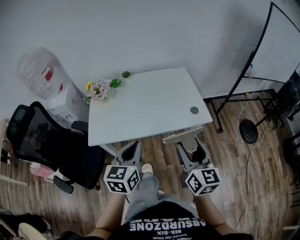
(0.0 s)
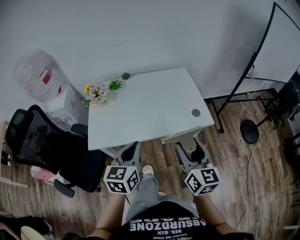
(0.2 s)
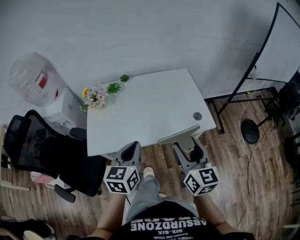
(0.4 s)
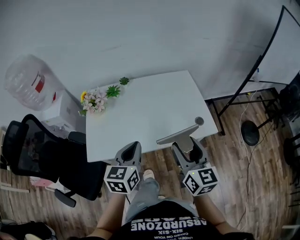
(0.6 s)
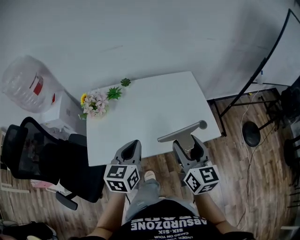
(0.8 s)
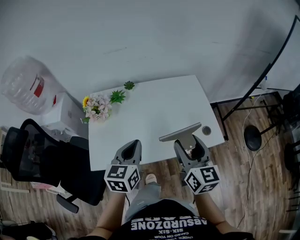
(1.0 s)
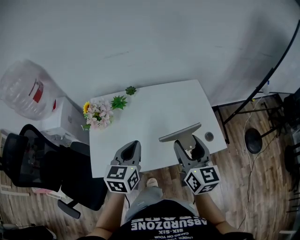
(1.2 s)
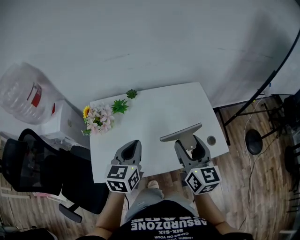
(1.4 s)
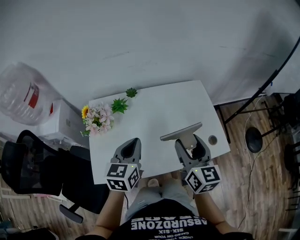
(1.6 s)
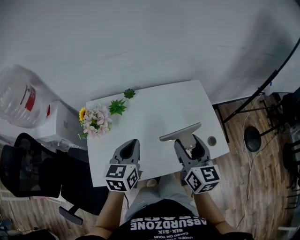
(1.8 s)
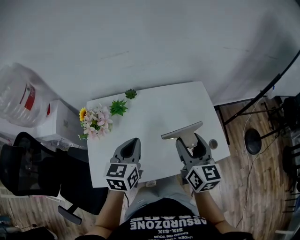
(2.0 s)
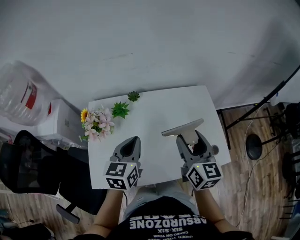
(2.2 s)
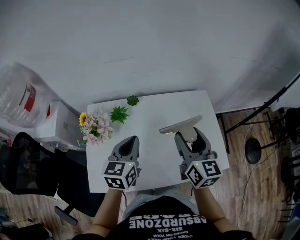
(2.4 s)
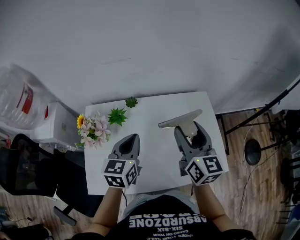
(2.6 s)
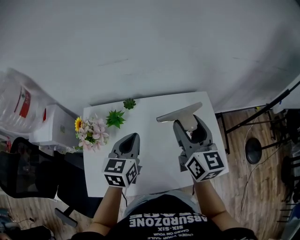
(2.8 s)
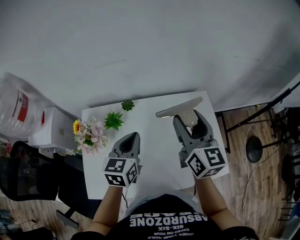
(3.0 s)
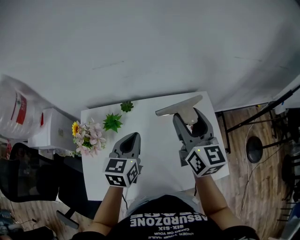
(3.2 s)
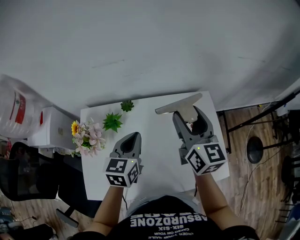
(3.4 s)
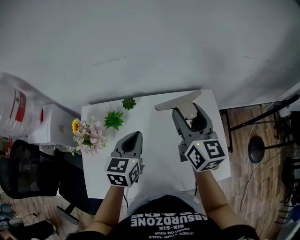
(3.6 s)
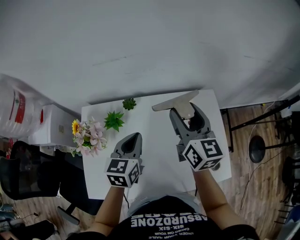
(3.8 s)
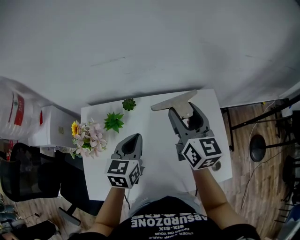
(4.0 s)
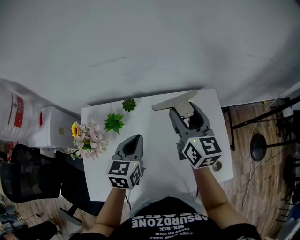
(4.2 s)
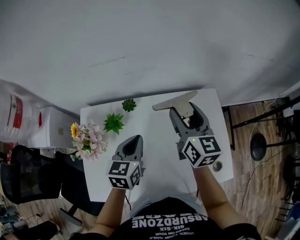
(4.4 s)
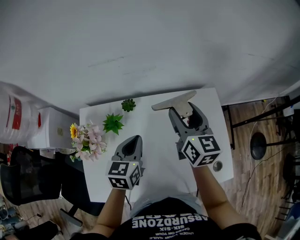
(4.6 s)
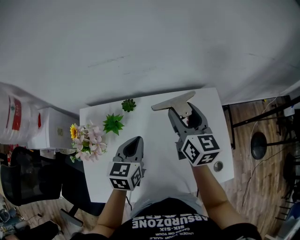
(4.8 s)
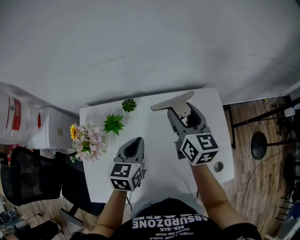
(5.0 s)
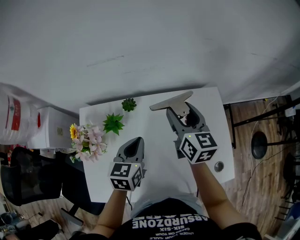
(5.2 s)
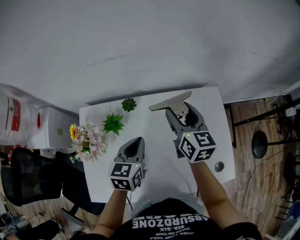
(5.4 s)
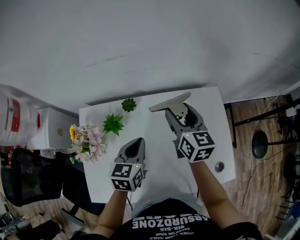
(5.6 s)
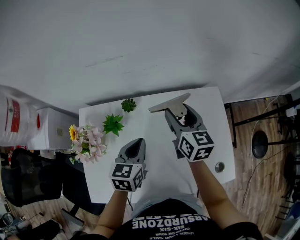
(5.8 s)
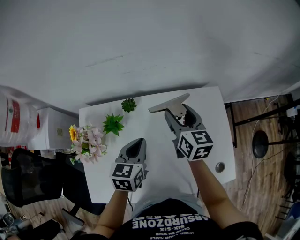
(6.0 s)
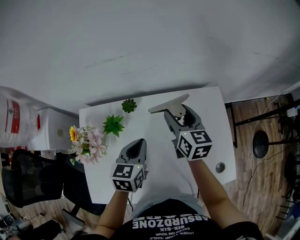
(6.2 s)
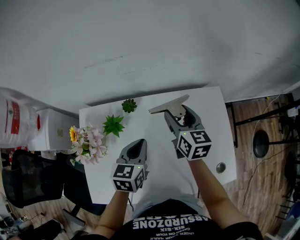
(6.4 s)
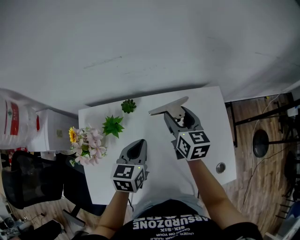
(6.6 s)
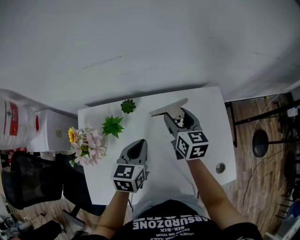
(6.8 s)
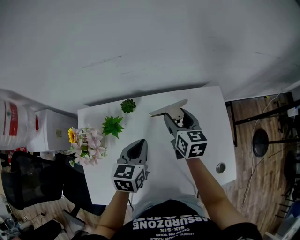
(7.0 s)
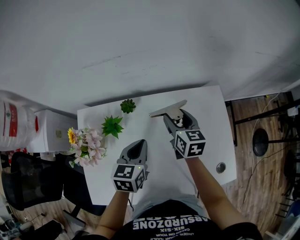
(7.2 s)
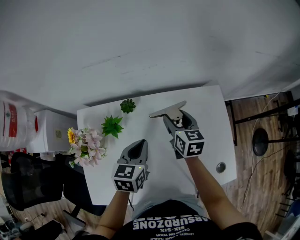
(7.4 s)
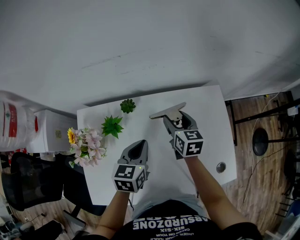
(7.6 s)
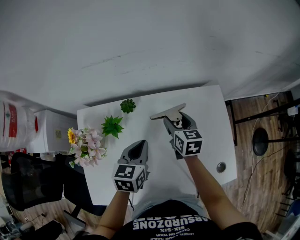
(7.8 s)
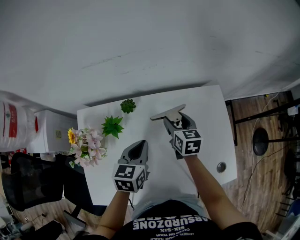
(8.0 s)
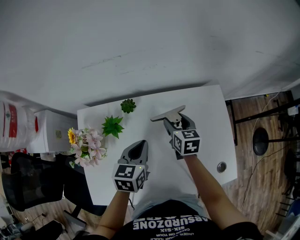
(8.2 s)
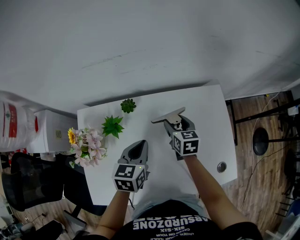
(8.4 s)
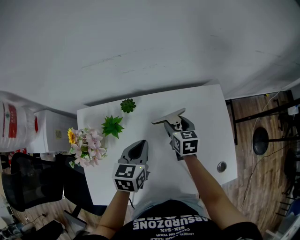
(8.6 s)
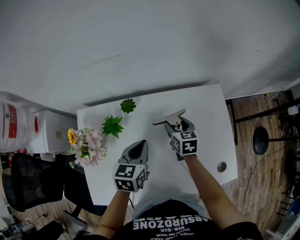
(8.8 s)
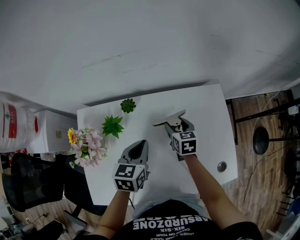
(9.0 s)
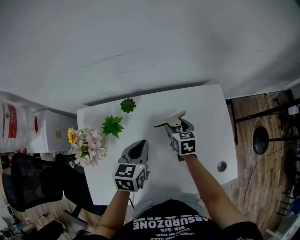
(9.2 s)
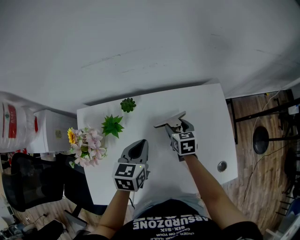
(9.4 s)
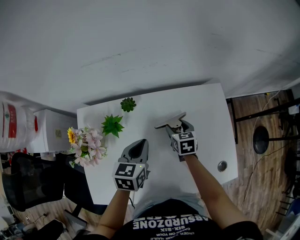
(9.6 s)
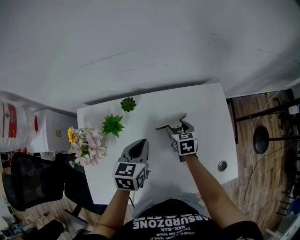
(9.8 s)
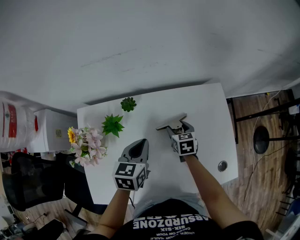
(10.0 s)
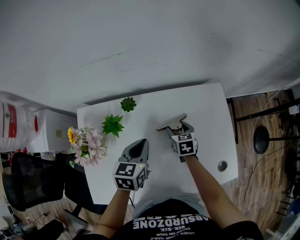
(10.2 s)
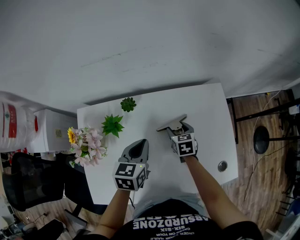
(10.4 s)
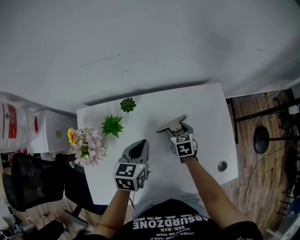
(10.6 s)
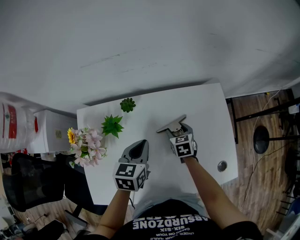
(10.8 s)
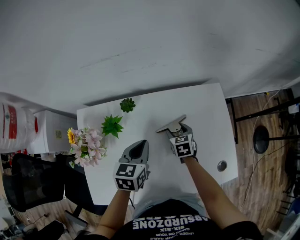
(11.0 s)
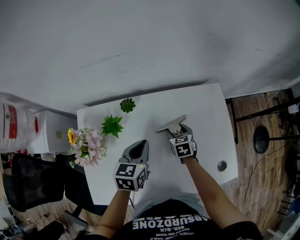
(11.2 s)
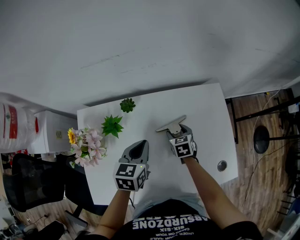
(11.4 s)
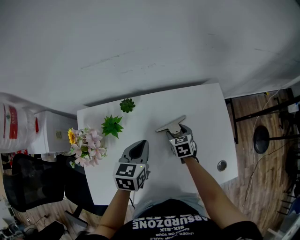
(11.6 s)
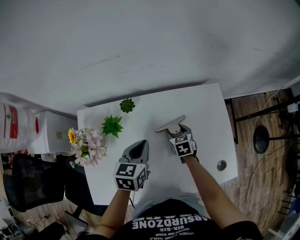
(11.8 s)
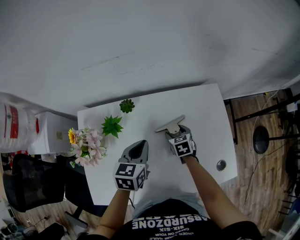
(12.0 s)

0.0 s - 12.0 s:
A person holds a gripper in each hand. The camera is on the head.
0.0 s - 1.6 s: Both grippers move forward, some 30 cm.
1.6 s - 3.0 s: The grippers both shift forward by about 20 cm.
3.0 s - 4.4 s: The left gripper moves approximately 5 cm; the right gripper moves forward and downward, approximately 10 cm.
4.4 s - 6.0 s: The right gripper moves downward, approximately 5 cm.
6.0 s - 7.6 s: The right gripper shifts some 10 cm downward.
7.6 s - 9.0 s: The right gripper heads downward, covering roughly 10 cm.
9.0 s - 10.4 s: The right gripper goes roughly 5 cm downward.
10.4 s - 12.0 s: The grippers stay close to where they were, moving slightly.

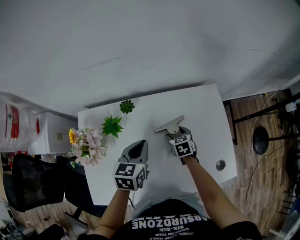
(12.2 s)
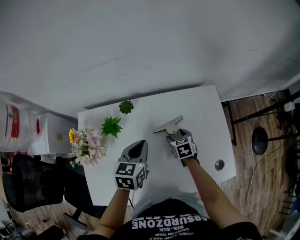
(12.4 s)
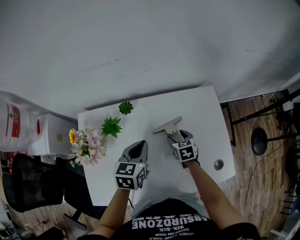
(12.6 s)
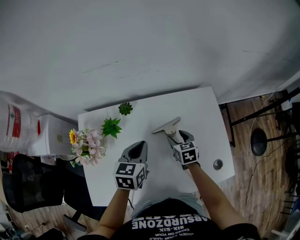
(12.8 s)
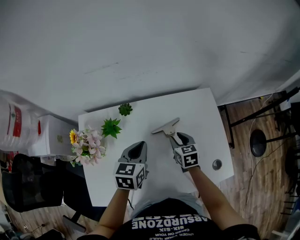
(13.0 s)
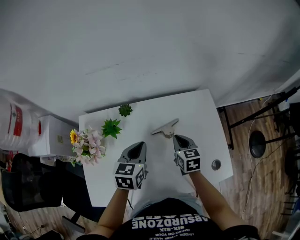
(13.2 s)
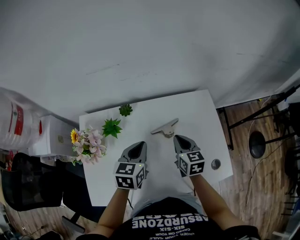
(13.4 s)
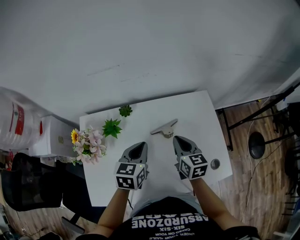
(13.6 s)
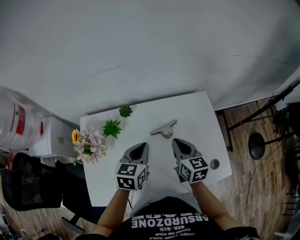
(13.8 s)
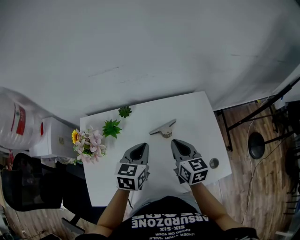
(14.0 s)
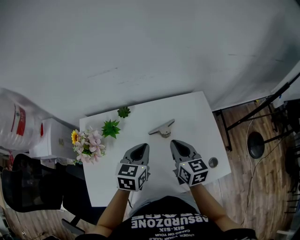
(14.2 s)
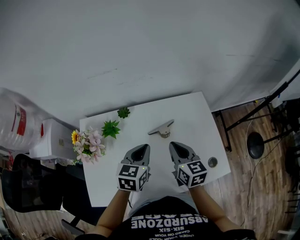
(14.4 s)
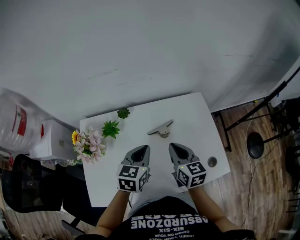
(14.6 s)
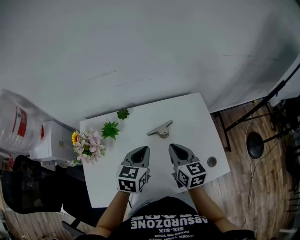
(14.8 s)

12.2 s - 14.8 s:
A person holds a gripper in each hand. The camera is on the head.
12.2 s - 13.4 s: The right gripper goes roughly 15 cm upward, turns by roughly 30 degrees, and closes.
13.4 s - 14.8 s: The right gripper heads backward and upward, covering some 10 cm. Meanwhile the left gripper shifts by some 5 cm.

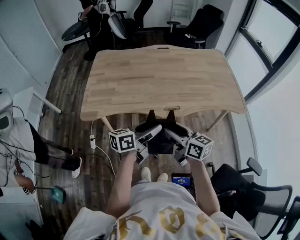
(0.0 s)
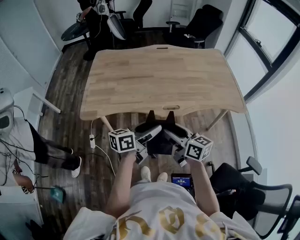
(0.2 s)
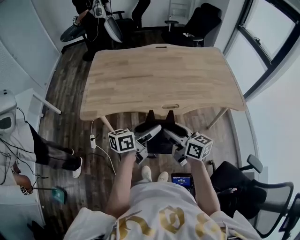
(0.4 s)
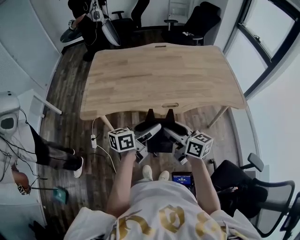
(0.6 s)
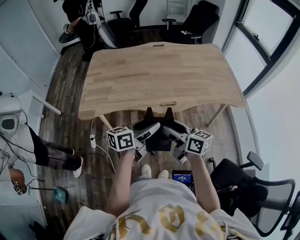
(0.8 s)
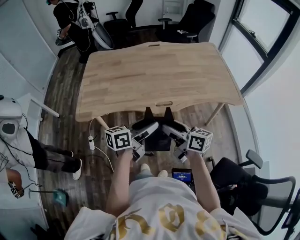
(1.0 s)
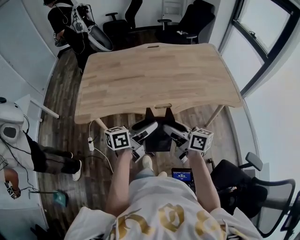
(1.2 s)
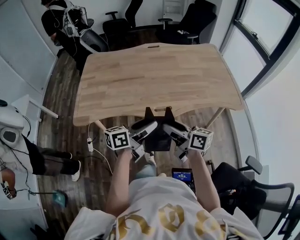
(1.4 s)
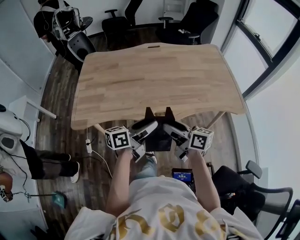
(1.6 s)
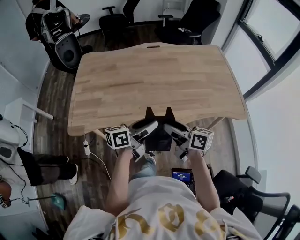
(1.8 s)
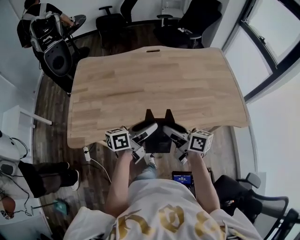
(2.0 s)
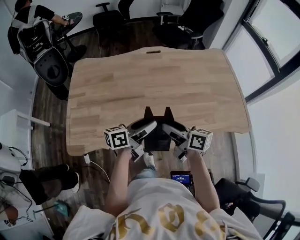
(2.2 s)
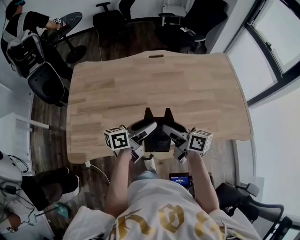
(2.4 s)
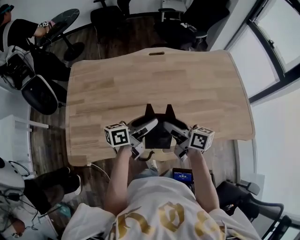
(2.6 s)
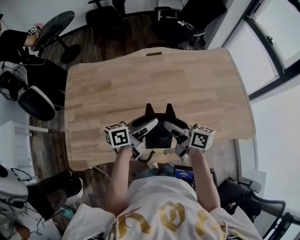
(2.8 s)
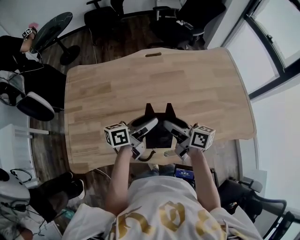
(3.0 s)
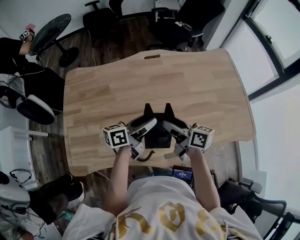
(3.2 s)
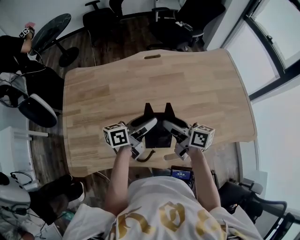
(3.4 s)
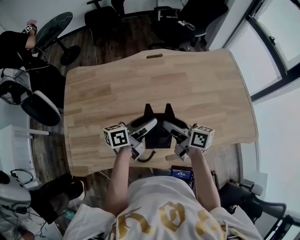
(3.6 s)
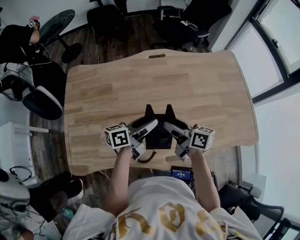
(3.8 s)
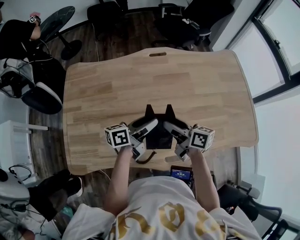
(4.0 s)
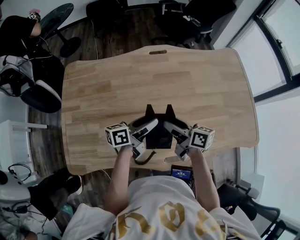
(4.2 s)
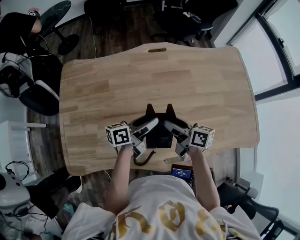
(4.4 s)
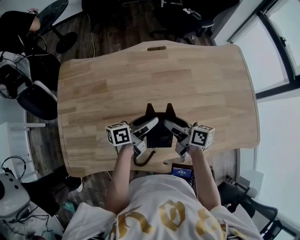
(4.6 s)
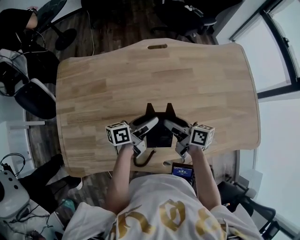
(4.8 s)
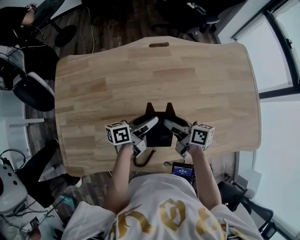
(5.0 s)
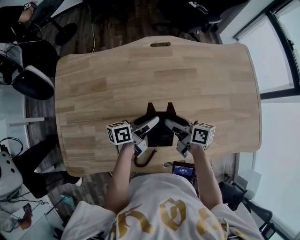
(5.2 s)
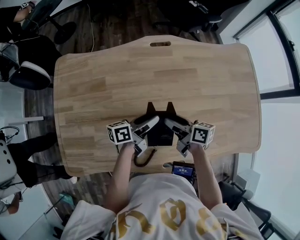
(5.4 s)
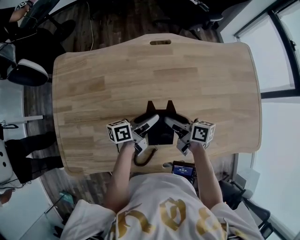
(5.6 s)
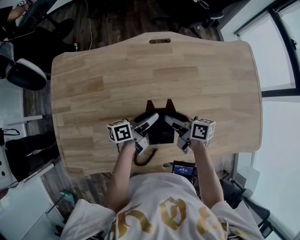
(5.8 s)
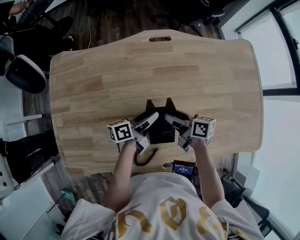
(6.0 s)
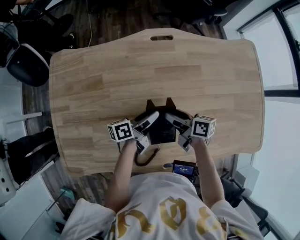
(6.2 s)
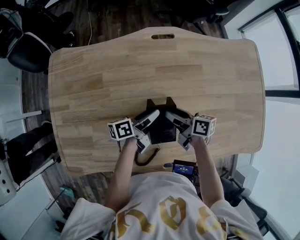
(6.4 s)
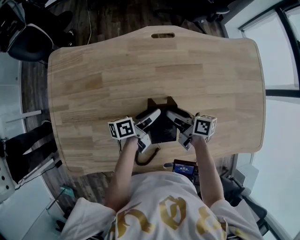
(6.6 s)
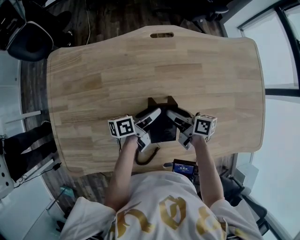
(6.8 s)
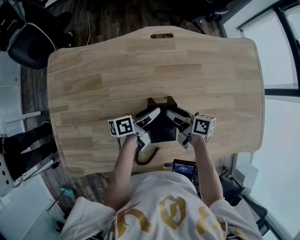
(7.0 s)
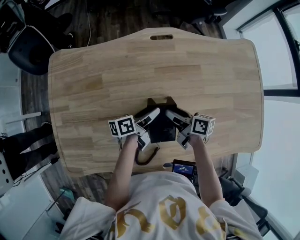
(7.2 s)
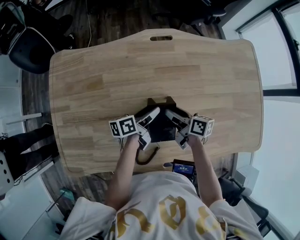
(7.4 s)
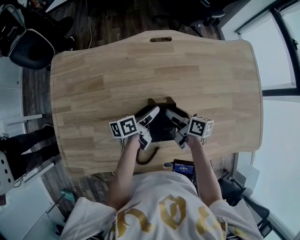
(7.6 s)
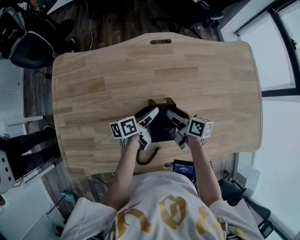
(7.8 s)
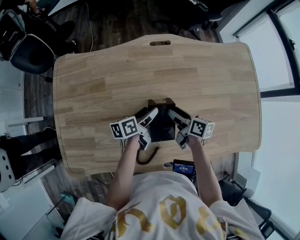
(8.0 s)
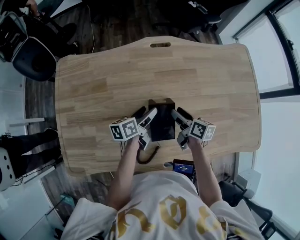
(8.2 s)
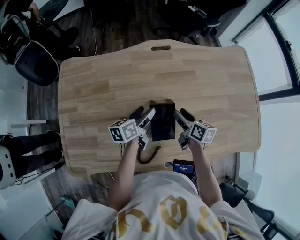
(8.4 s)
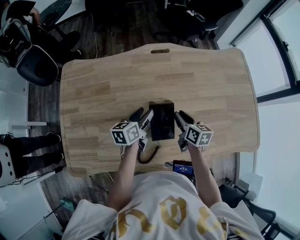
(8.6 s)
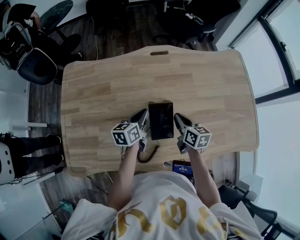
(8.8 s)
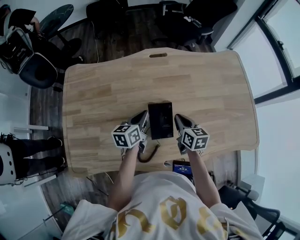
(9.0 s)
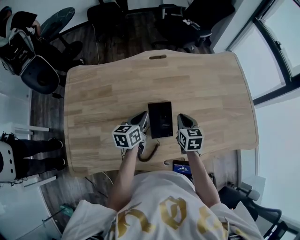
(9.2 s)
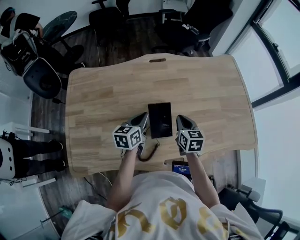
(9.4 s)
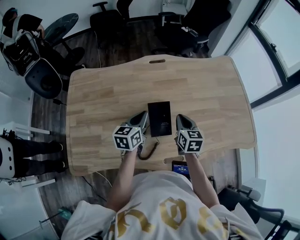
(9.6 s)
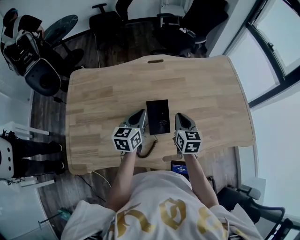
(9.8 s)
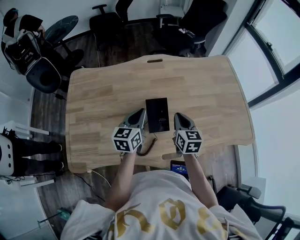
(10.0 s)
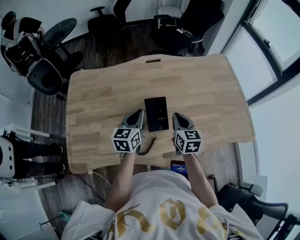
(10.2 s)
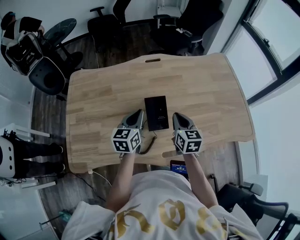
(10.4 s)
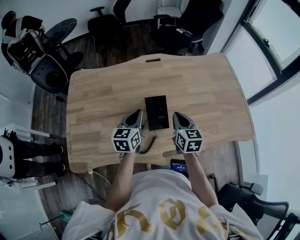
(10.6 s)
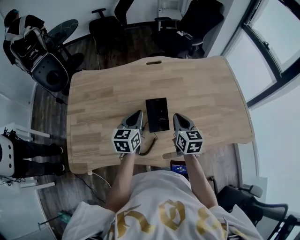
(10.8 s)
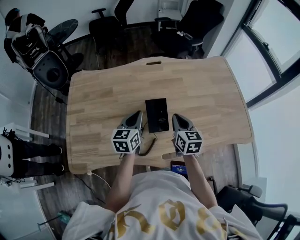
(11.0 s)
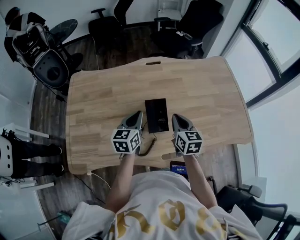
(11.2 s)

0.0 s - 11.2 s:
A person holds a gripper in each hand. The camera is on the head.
0.0 s - 1.6 s: The left gripper moves forward, about 10 cm. The right gripper heads forward and to the right, covering approximately 10 cm.
1.6 s - 3.2 s: The grippers both shift forward by some 35 cm.
3.2 s - 4.8 s: Both grippers move downward and forward, approximately 10 cm.
4.8 s - 6.4 s: The left gripper shifts roughly 10 cm downward, while the right gripper heads downward and forward, covering about 10 cm.
6.4 s - 8.0 s: The grippers stay close to where they were, moving slightly.
8.0 s - 9.6 s: The grippers both shift upward and backward by about 15 cm. The left gripper changes its angle by approximately 40 degrees, and closes up. The right gripper turns by roughly 40 degrees, and closes up.
9.6 s - 11.2 s: The left gripper moves approximately 5 cm. Meanwhile the right gripper shifts by about 5 cm.
